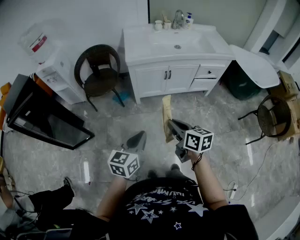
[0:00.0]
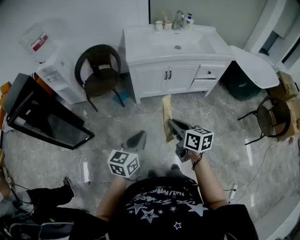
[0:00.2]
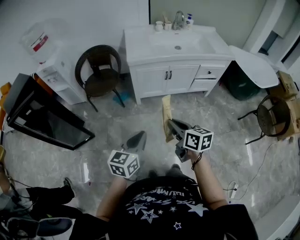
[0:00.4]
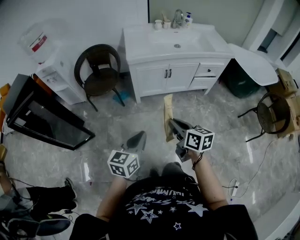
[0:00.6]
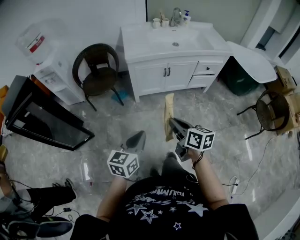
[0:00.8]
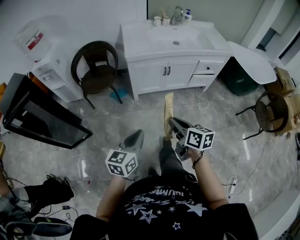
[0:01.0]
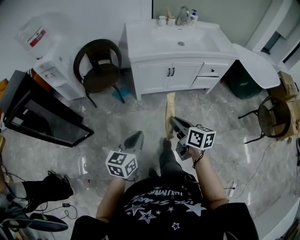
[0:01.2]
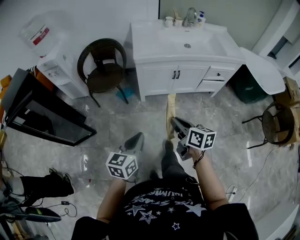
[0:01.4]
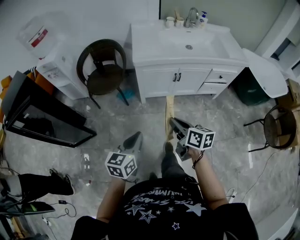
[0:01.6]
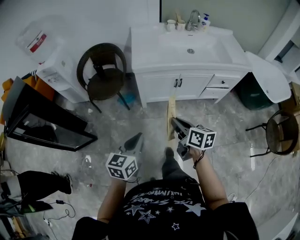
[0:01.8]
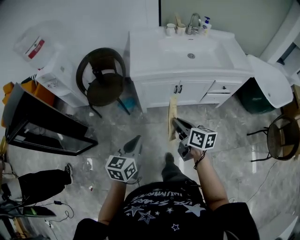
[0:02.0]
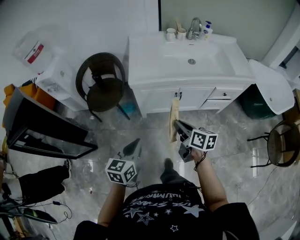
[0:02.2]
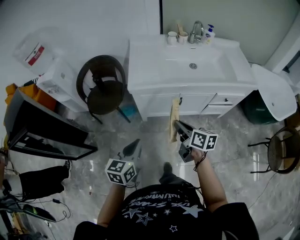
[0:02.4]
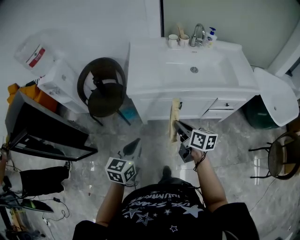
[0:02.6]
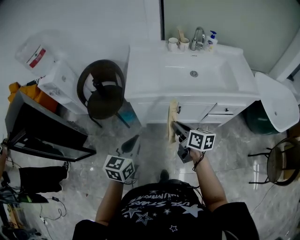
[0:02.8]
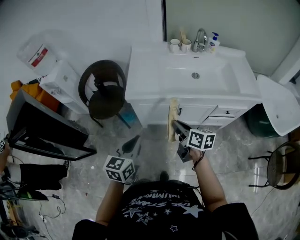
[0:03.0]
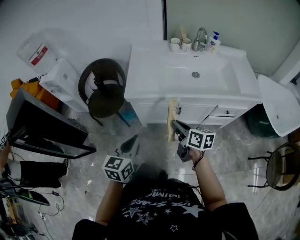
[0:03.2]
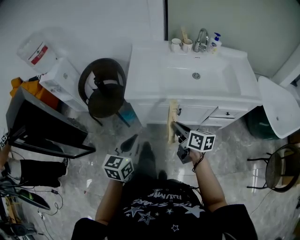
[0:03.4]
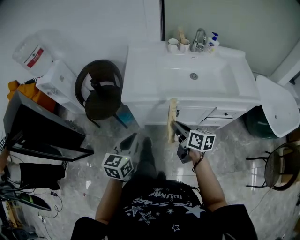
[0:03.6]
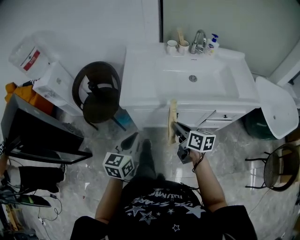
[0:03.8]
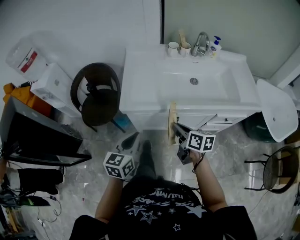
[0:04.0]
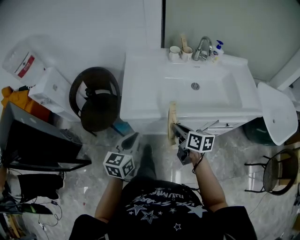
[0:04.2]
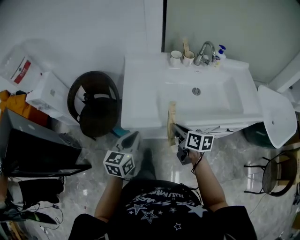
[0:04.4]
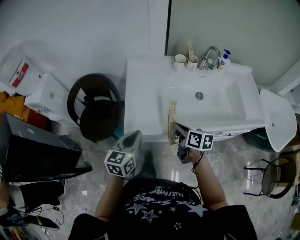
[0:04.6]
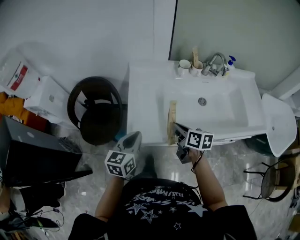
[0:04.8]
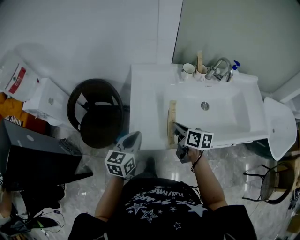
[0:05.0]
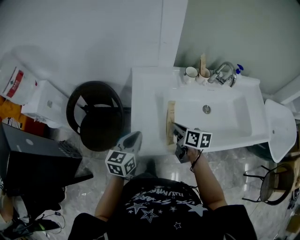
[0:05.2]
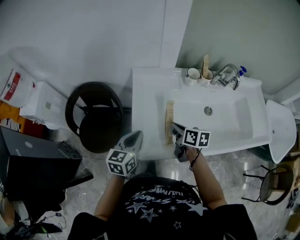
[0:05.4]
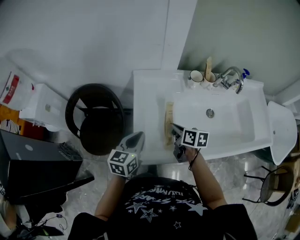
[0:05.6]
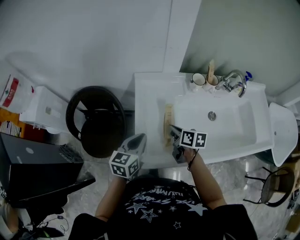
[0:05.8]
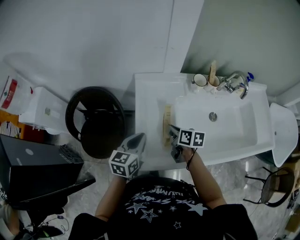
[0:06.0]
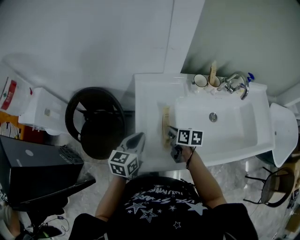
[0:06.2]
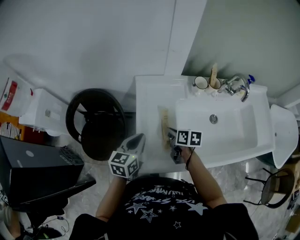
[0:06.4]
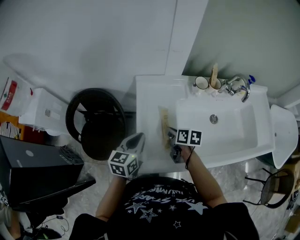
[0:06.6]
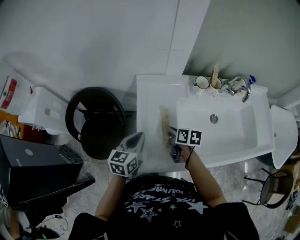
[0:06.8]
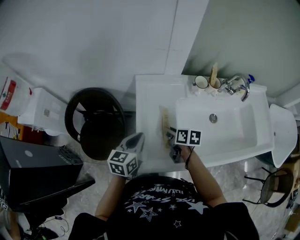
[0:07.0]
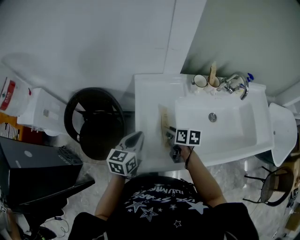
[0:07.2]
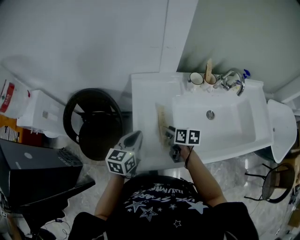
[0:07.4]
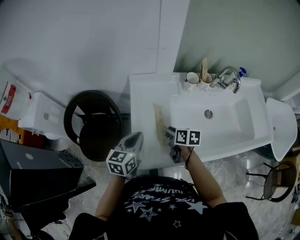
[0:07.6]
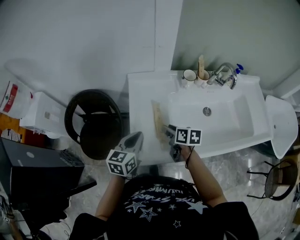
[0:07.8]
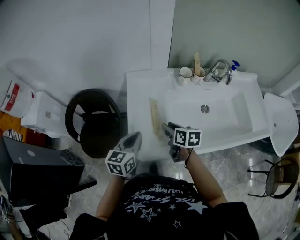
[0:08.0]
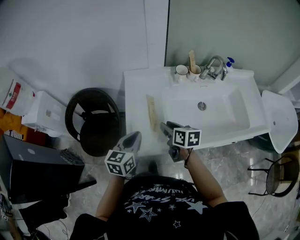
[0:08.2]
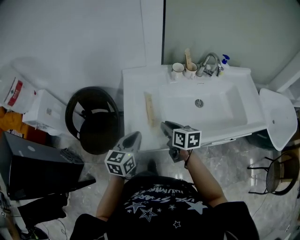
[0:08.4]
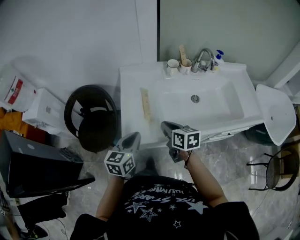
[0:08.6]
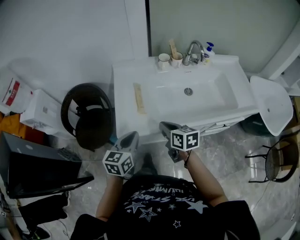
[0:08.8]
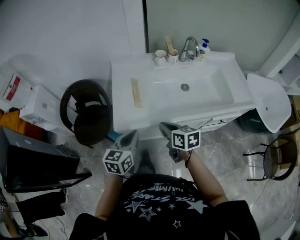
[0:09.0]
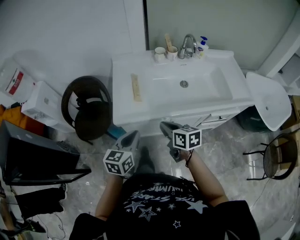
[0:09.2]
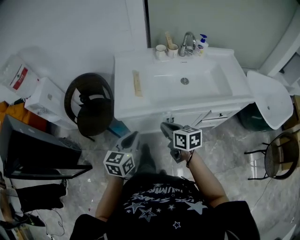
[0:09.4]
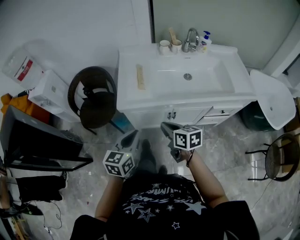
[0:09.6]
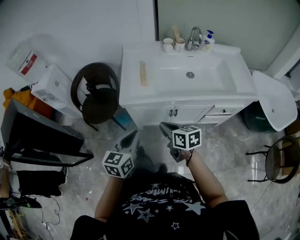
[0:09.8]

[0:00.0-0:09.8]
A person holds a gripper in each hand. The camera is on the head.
0:00.0 to 0:01.4: The right gripper shifts some 5 cm forward. The left gripper shifts about 5 cm to the left.
0:01.4 to 0:02.8: The grippers both shift forward and to the right by roughly 30 cm.
0:02.8 to 0:04.2: Both grippers move forward, some 15 cm.
0:04.2 to 0:05.6: Both grippers move forward, approximately 25 cm.
0:05.6 to 0:07.0: The right gripper moves about 5 cm, and opens up.
0:07.0 to 0:08.4: The right gripper travels backward, upward and to the right by about 15 cm, while the left gripper heads backward and to the right, covering about 15 cm.
0:08.4 to 0:09.8: The two grippers go roughly 25 cm backward.

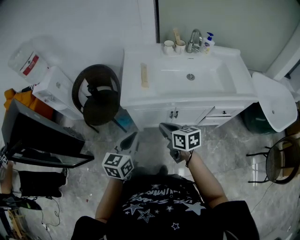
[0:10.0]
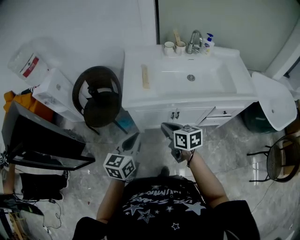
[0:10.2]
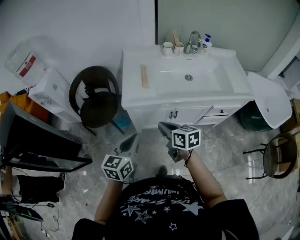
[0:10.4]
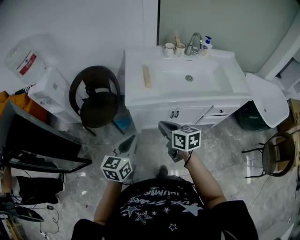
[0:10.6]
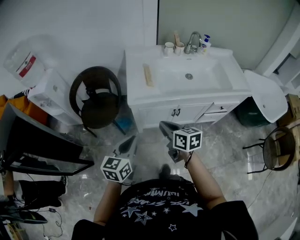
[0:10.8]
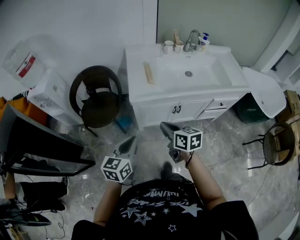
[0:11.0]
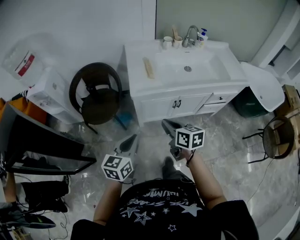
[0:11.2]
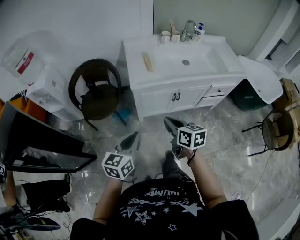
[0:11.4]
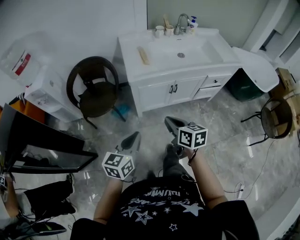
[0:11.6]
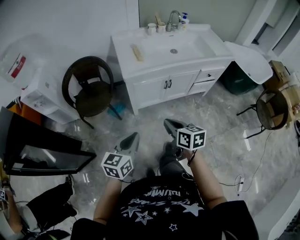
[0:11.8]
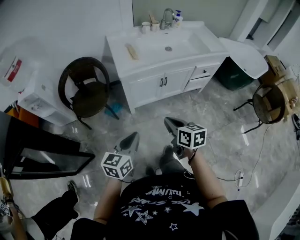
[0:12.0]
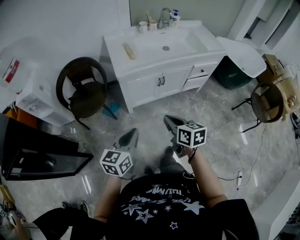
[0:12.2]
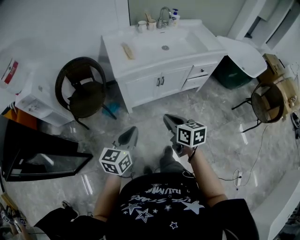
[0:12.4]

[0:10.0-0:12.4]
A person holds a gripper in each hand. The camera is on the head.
0:10.0 to 0:11.2: The grippers both shift to the left and backward by roughly 10 cm.
0:11.2 to 0:12.4: The grippers both shift backward by about 10 cm.

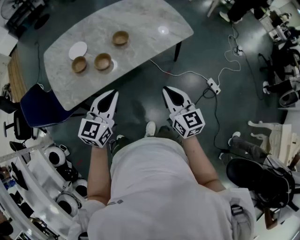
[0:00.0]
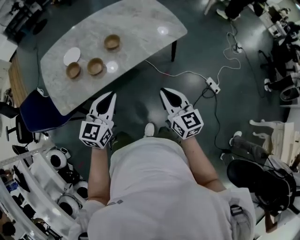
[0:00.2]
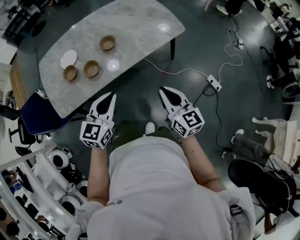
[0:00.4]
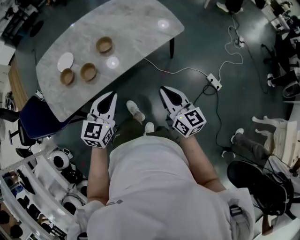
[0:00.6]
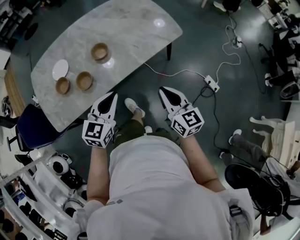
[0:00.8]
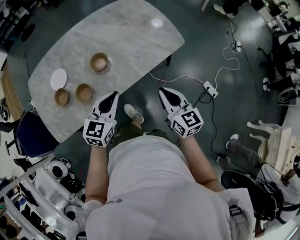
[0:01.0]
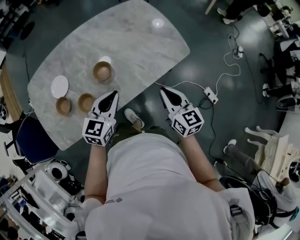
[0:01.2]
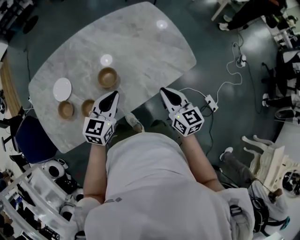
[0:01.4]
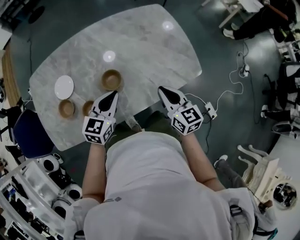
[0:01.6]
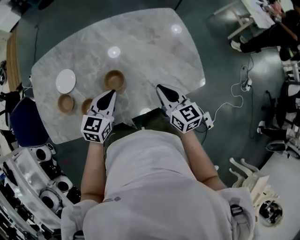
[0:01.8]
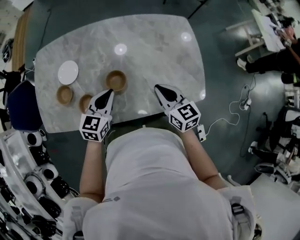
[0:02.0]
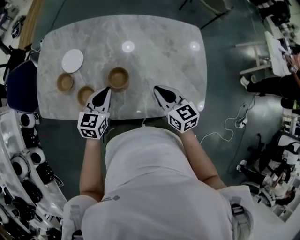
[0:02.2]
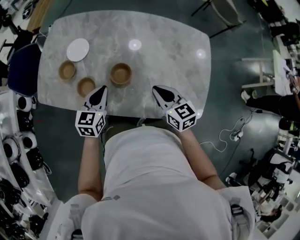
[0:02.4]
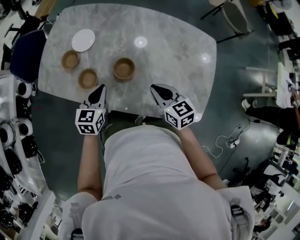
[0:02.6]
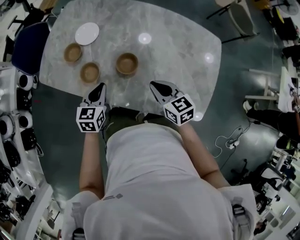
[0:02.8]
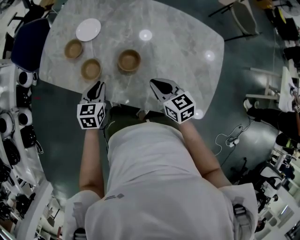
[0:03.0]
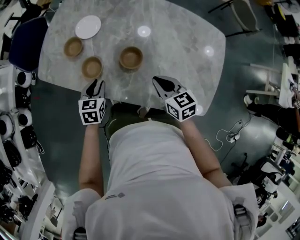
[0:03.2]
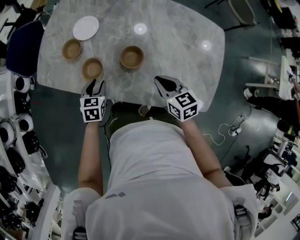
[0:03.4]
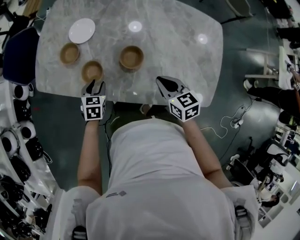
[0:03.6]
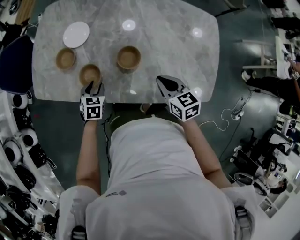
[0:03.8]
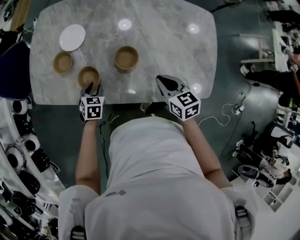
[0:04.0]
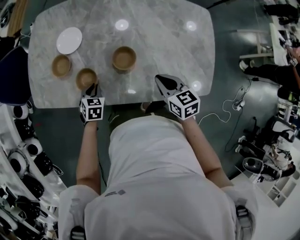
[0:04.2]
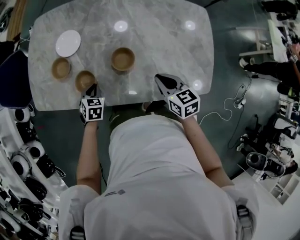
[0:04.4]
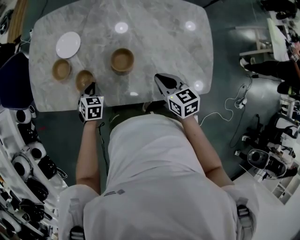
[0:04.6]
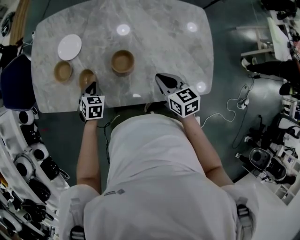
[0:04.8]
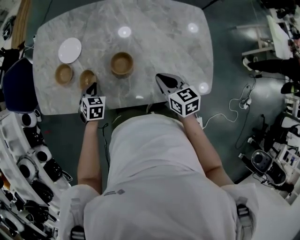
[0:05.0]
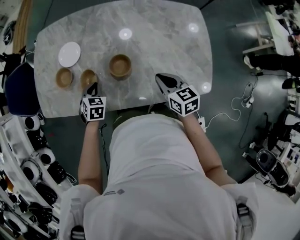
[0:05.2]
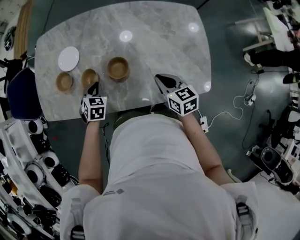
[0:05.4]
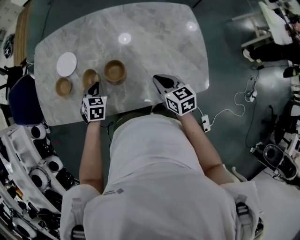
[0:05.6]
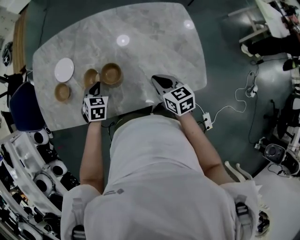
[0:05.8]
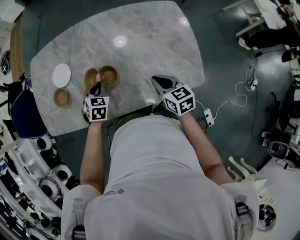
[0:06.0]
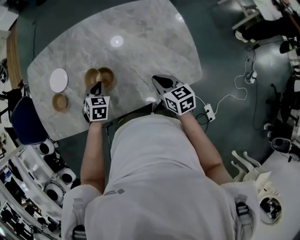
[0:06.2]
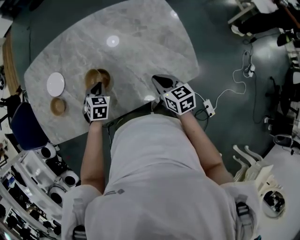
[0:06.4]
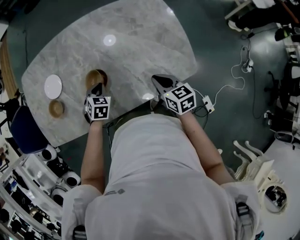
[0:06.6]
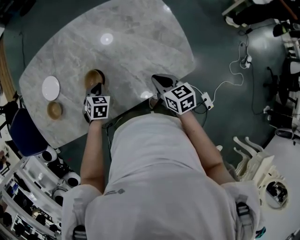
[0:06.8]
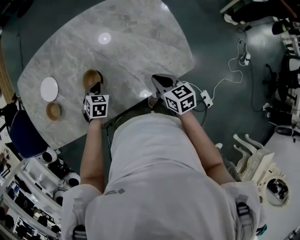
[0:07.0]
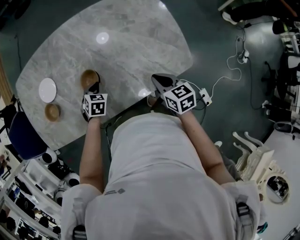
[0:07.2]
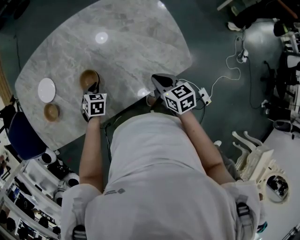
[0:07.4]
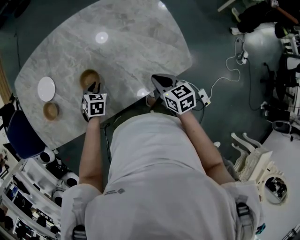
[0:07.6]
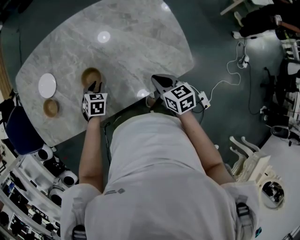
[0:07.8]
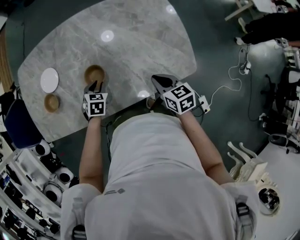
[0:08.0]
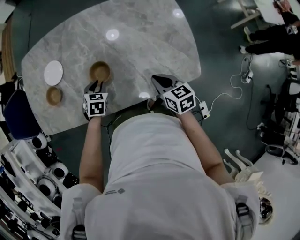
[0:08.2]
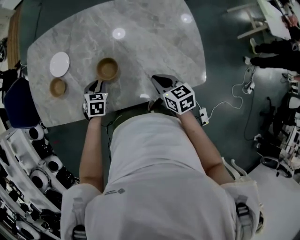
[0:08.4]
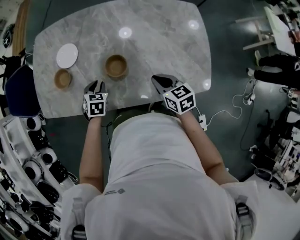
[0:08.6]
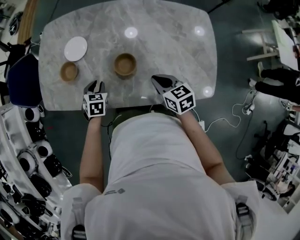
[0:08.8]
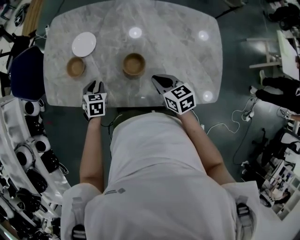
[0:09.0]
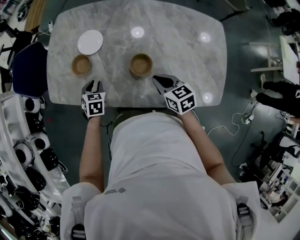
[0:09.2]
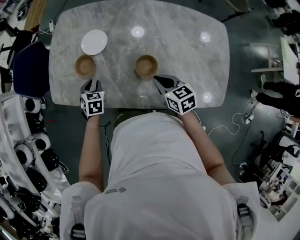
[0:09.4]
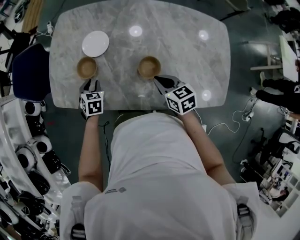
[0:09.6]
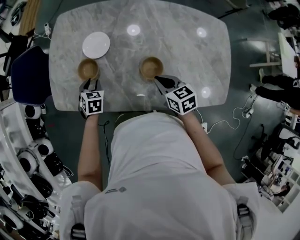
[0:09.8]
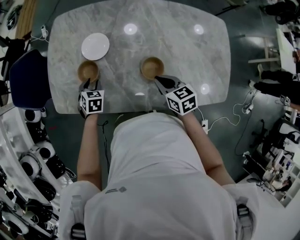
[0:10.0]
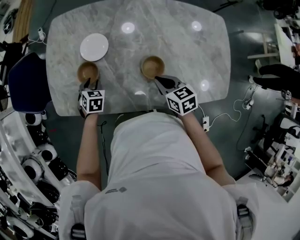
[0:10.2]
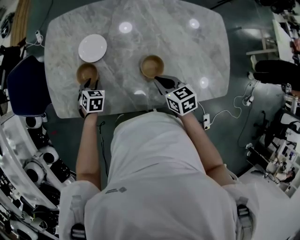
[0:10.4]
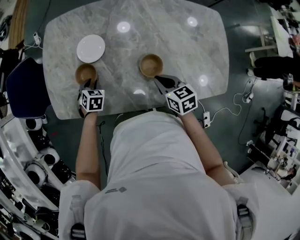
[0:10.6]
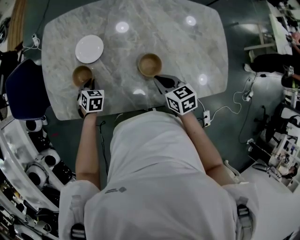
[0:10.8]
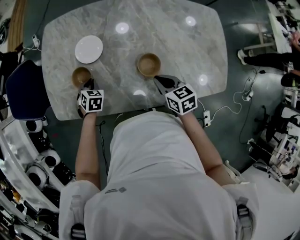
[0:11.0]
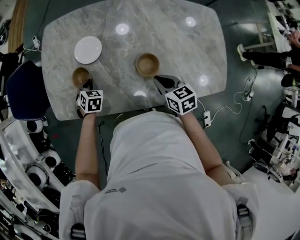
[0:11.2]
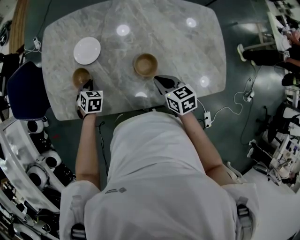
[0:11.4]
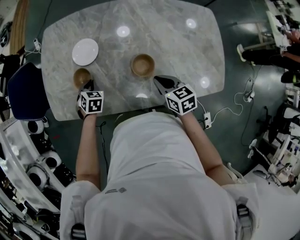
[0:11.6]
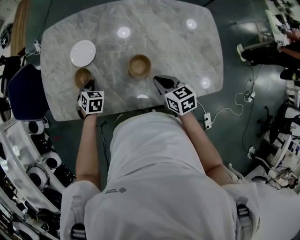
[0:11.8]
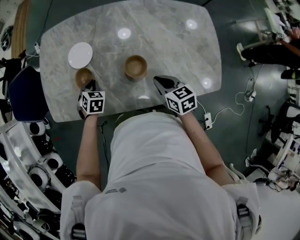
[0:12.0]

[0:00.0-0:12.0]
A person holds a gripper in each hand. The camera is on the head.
0:00.0 to 0:01.6: Both grippers travel together forward, roughly 35 cm.
0:01.6 to 0:03.0: The left gripper ends up approximately 15 cm from where it was, and rotates about 60 degrees. The right gripper shifts by approximately 15 cm, and turns by roughly 50 degrees.
0:03.0 to 0:04.4: The right gripper swivels some 20 degrees, while the left gripper goes about 10 cm downward, rotates about 30 degrees, and opens, then closes once more.
0:04.4 to 0:06.0: The right gripper heads to the right, covering some 10 cm, while the left gripper travels to the right and upward by roughly 15 cm.
0:06.0 to 0:07.6: The left gripper heads downward and to the right, covering roughly 10 cm; the right gripper moves to the right and backward, approximately 10 cm.
0:07.6 to 0:09.0: The right gripper changes place by about 20 cm, and rotates approximately 30 degrees. The left gripper ends up about 20 cm from where it was, and rotates approximately 30 degrees.
0:09.0 to 0:10.4: The right gripper heads to the left and forward, covering some 10 cm. Meanwhile the left gripper goes about 15 cm forward and to the left.
0:10.4 to 0:12.0: The two grippers go about 5 cm to the right. The left gripper closes its fingers.
